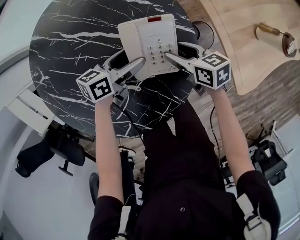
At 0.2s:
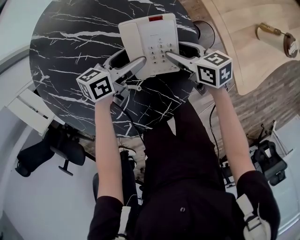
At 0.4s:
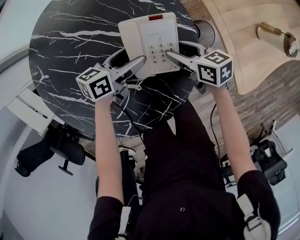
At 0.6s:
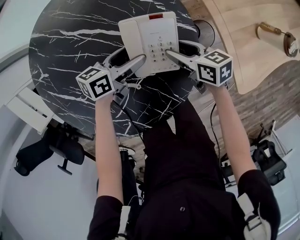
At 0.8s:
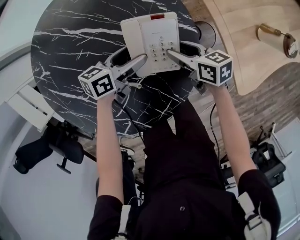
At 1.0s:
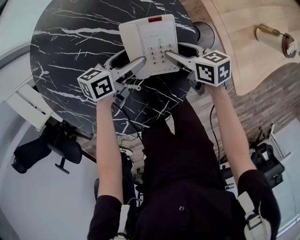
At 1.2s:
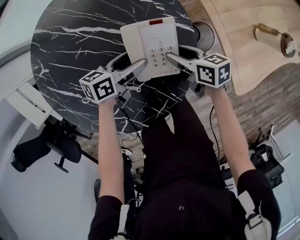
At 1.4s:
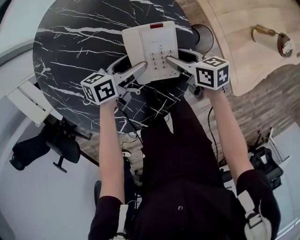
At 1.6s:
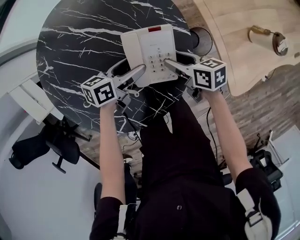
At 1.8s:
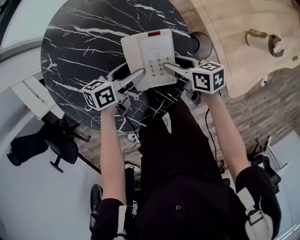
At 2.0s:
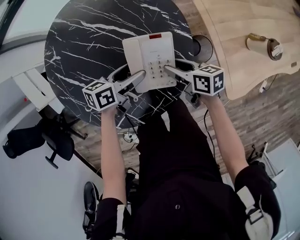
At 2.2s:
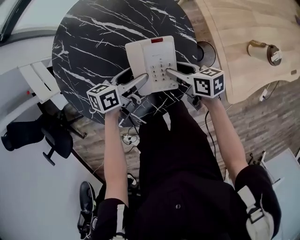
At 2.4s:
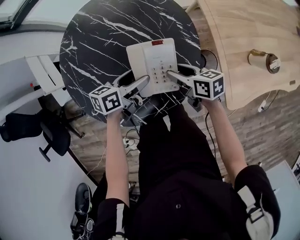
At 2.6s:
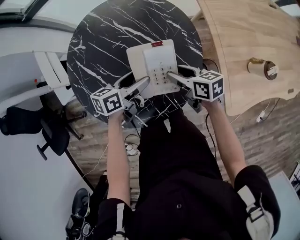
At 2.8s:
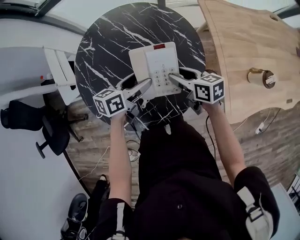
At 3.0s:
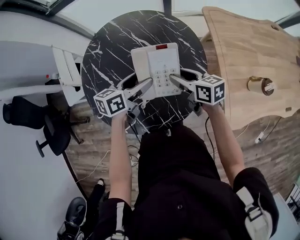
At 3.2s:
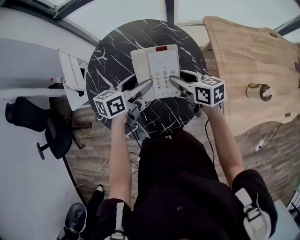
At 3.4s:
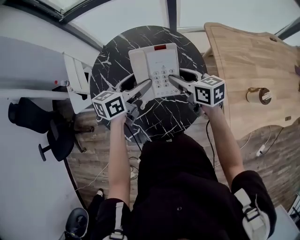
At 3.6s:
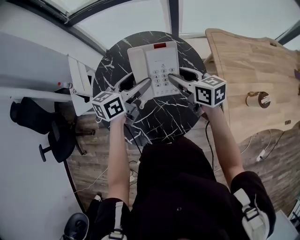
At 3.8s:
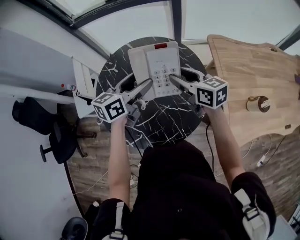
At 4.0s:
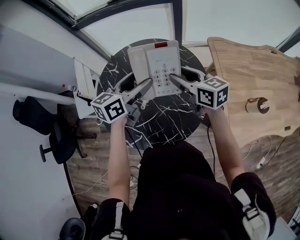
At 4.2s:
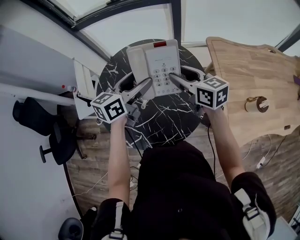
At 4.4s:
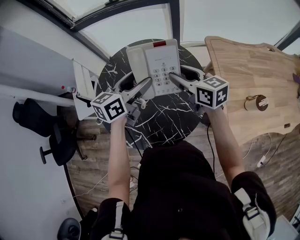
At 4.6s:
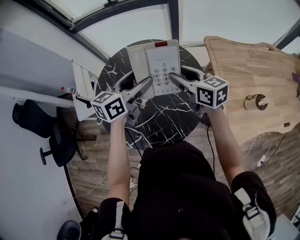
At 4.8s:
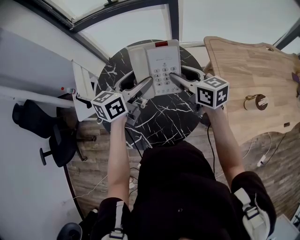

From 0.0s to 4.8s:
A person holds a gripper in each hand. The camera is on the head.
From 0.0s to 1.6s: The grippers stay close to where they were, moving slightly.
From 1.6s to 3.2s: Both grippers travel together upward and to the left, about 20 cm. The right gripper rotates some 30 degrees; the left gripper changes its angle by some 30 degrees.
From 3.2s to 4.8s: Both grippers travel together upward, some 10 cm.

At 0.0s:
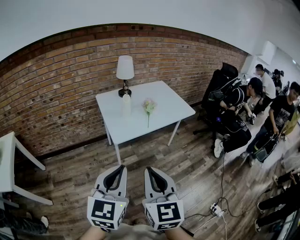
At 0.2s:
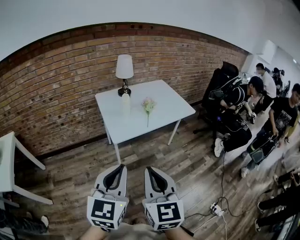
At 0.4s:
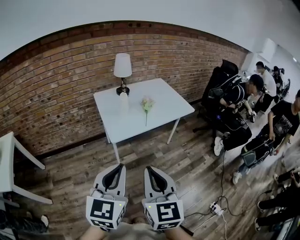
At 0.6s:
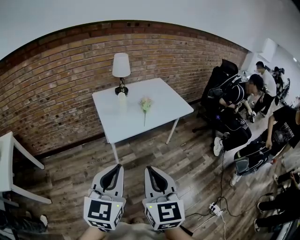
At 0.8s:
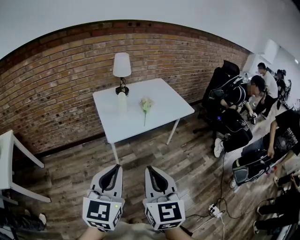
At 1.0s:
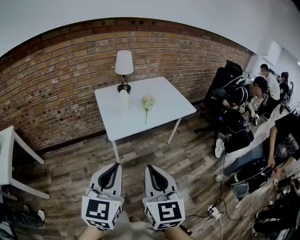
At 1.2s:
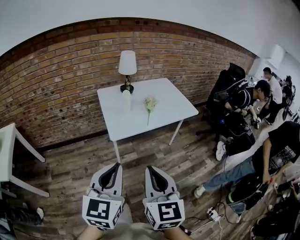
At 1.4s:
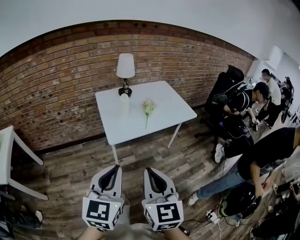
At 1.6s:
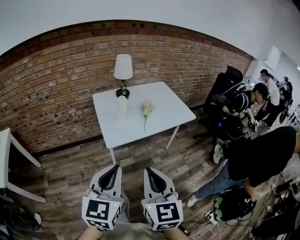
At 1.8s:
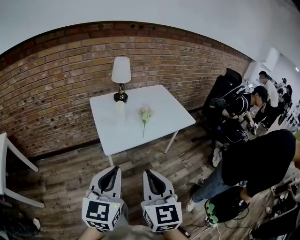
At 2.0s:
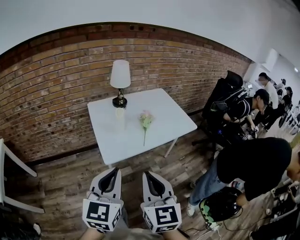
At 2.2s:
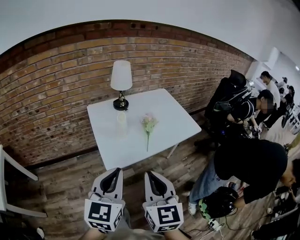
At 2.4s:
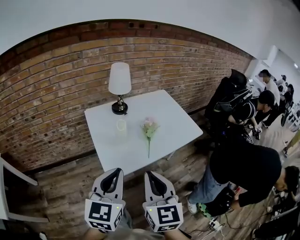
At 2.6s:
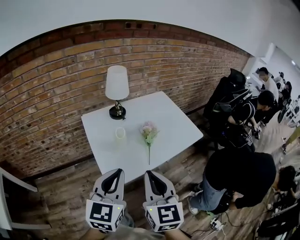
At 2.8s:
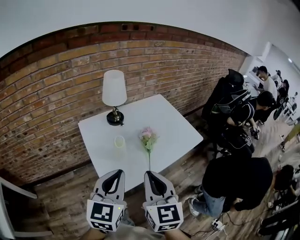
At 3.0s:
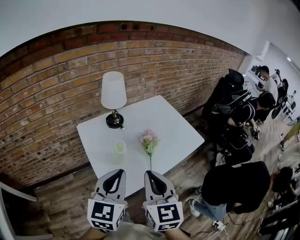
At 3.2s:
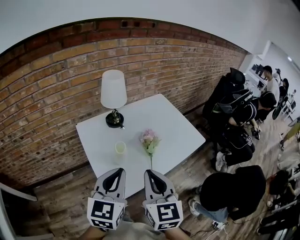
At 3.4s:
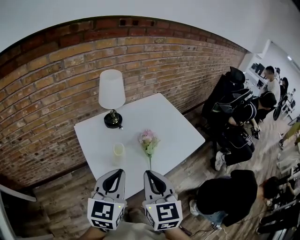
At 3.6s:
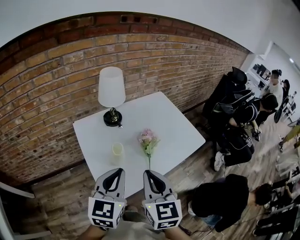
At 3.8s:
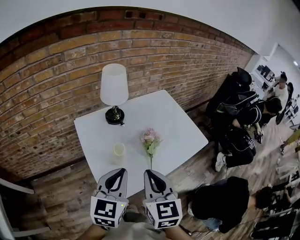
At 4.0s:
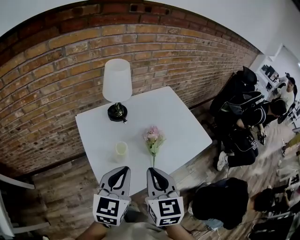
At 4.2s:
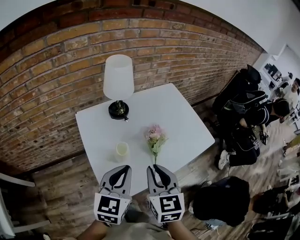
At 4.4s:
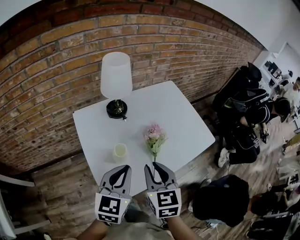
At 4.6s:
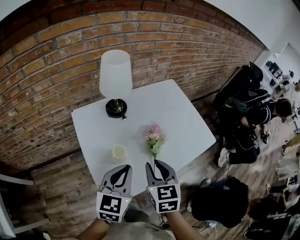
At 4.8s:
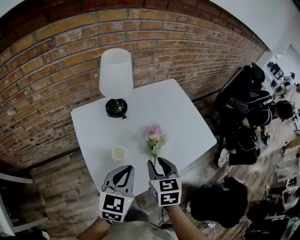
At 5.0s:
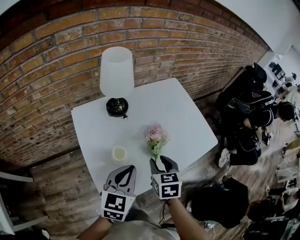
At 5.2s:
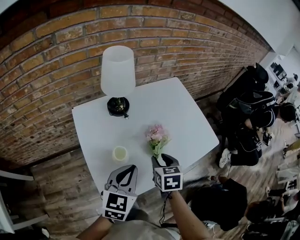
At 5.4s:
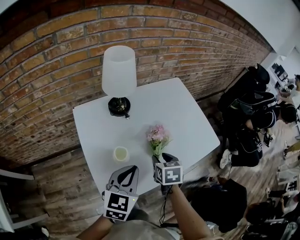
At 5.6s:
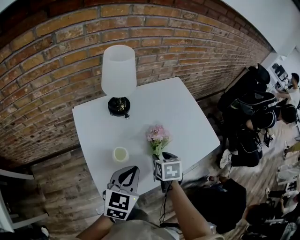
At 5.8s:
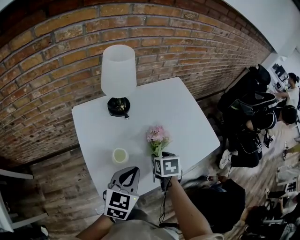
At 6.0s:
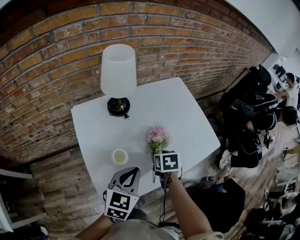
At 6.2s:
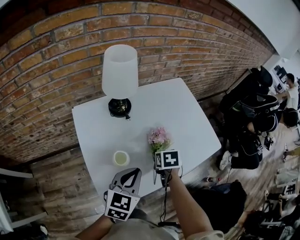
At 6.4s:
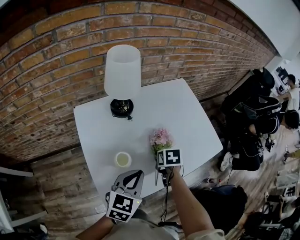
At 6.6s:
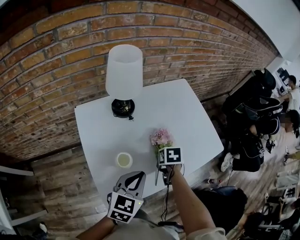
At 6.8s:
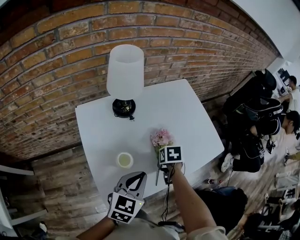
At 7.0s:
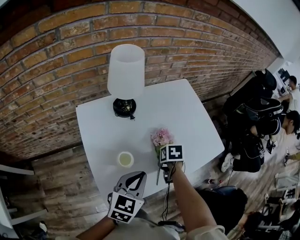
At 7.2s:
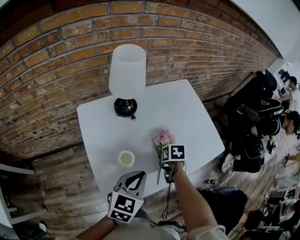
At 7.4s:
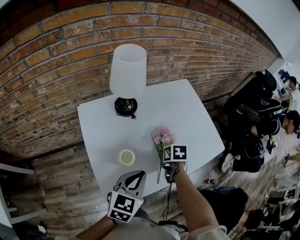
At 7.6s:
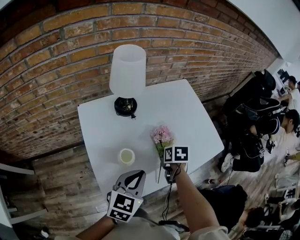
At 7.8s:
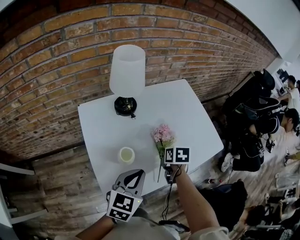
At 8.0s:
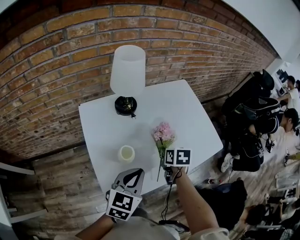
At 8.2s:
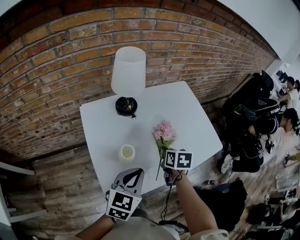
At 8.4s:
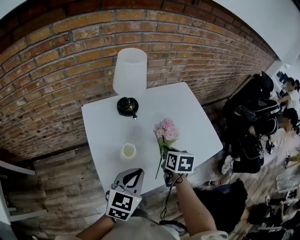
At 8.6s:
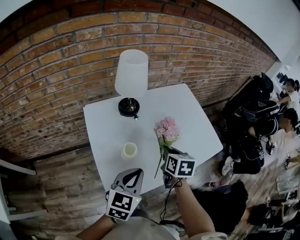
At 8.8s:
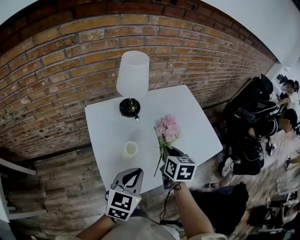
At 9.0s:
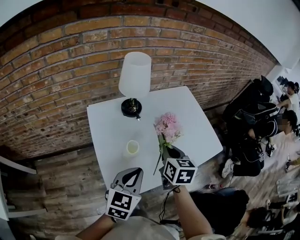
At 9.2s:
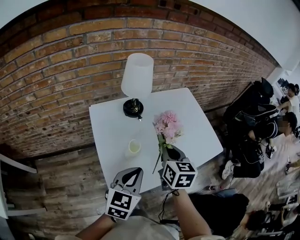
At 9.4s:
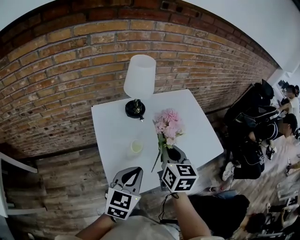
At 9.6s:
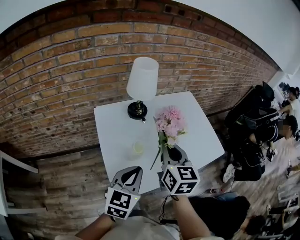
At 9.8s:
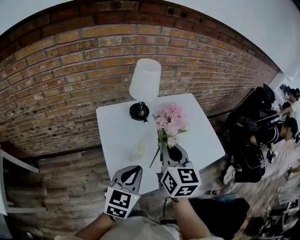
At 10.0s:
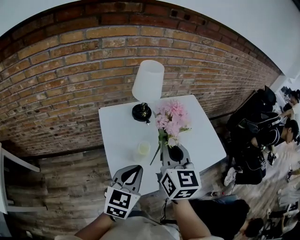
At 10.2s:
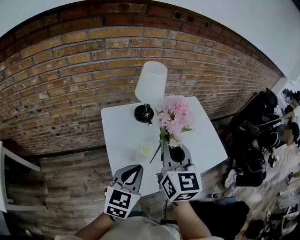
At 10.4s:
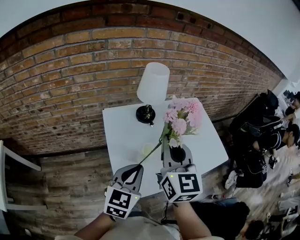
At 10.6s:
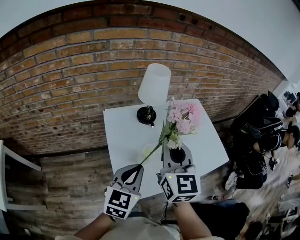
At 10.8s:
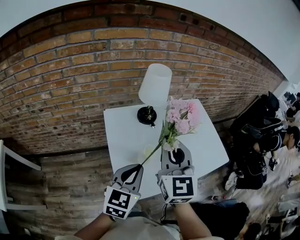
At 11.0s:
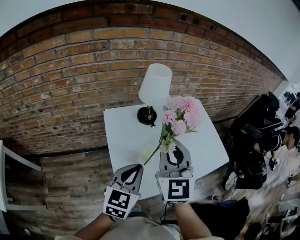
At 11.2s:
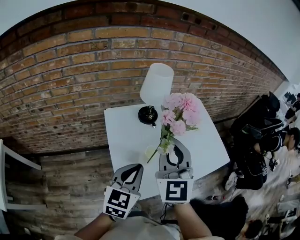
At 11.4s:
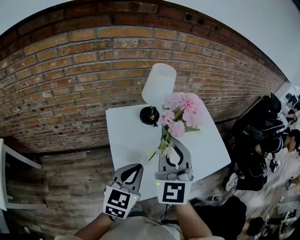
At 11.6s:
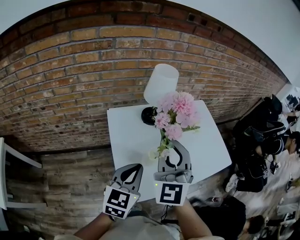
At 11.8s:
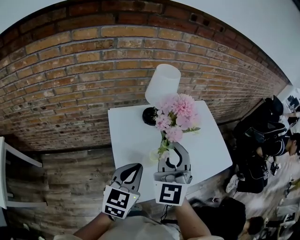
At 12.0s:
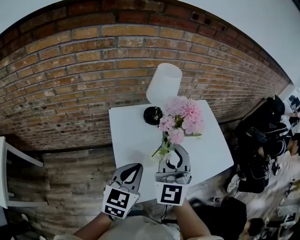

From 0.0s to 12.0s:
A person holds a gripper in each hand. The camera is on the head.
From 0.0s to 1.6s: Both grippers travel together forward, some 5 cm.
From 1.6s to 3.0s: Both grippers move forward, about 30 cm.
From 3.0s to 4.4s: The two grippers go some 15 cm forward and downward. The right gripper opens up.
From 4.4s to 6.0s: The left gripper heads downward, covering roughly 5 cm. Meanwhile the right gripper moves downward and forward, approximately 20 cm, tips its fingers downward by roughly 30 degrees, and opens up.
From 6.0s to 7.6s: The right gripper closes up.
From 7.6s to 9.0s: The right gripper heads upward, covering some 15 cm, and tips its fingers upward by approximately 30 degrees, while the left gripper ends up some 5 cm from where it was.
From 9.0s to 10.4s: The right gripper moves upward and to the left, about 20 cm, and changes its angle by about 30 degrees; the left gripper is displaced to the left by approximately 5 cm.
From 10.4s to 12.0s: The right gripper turns by approximately 30 degrees.

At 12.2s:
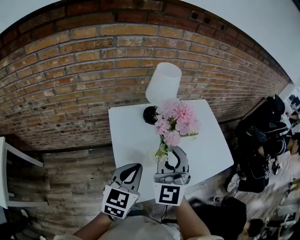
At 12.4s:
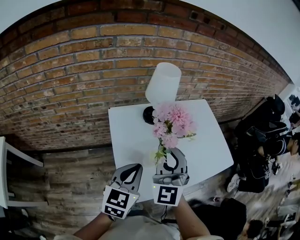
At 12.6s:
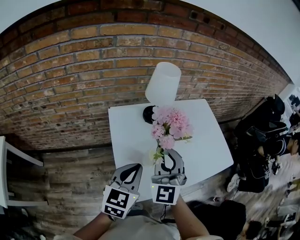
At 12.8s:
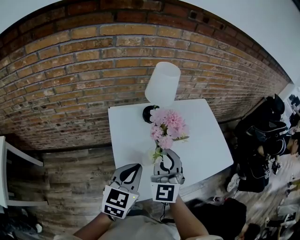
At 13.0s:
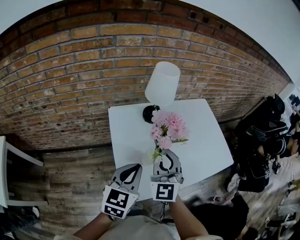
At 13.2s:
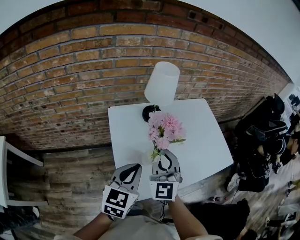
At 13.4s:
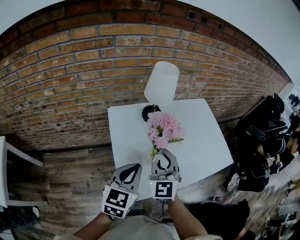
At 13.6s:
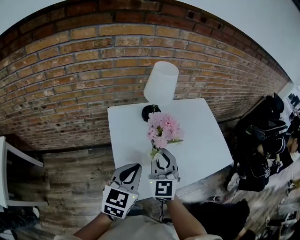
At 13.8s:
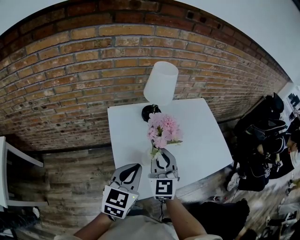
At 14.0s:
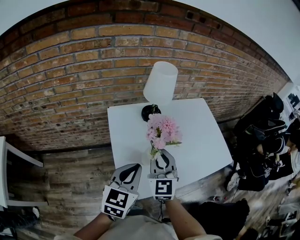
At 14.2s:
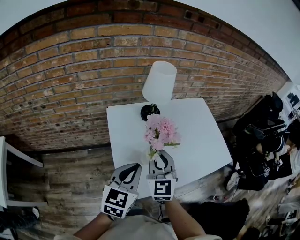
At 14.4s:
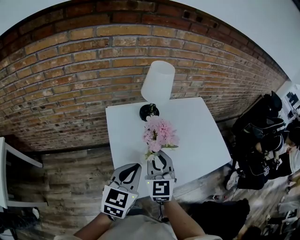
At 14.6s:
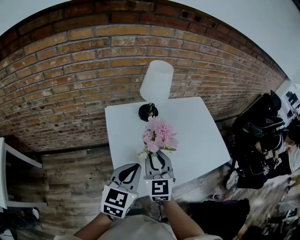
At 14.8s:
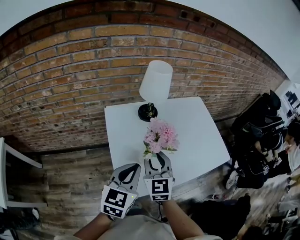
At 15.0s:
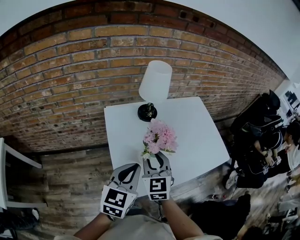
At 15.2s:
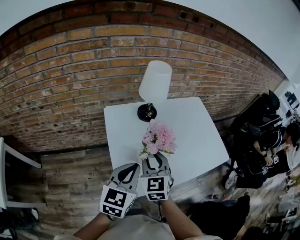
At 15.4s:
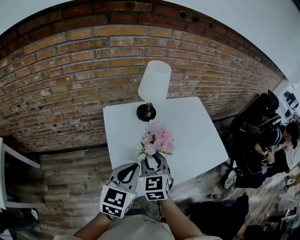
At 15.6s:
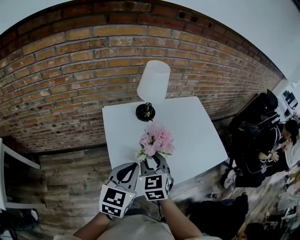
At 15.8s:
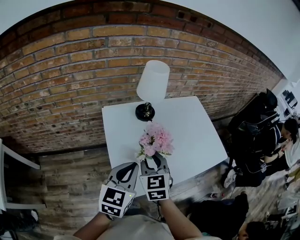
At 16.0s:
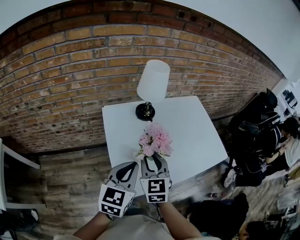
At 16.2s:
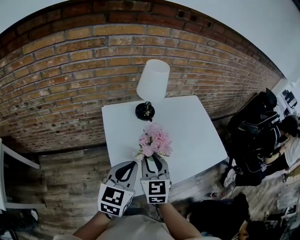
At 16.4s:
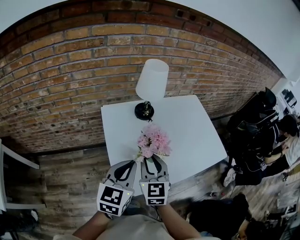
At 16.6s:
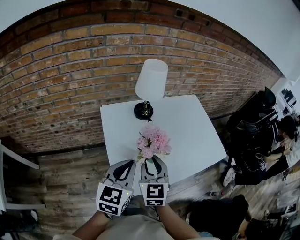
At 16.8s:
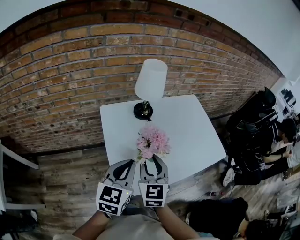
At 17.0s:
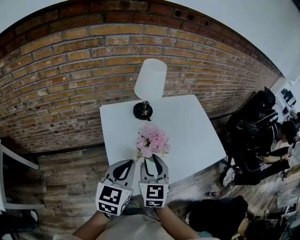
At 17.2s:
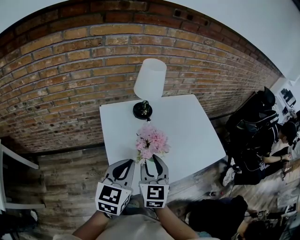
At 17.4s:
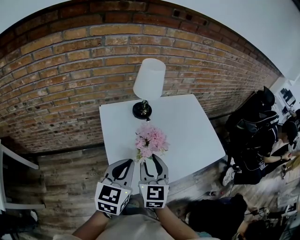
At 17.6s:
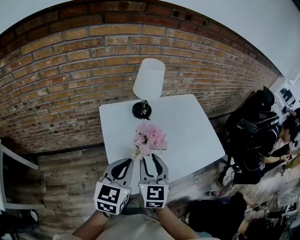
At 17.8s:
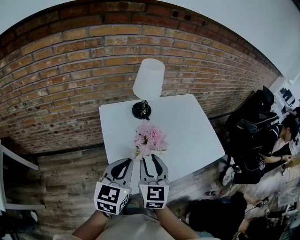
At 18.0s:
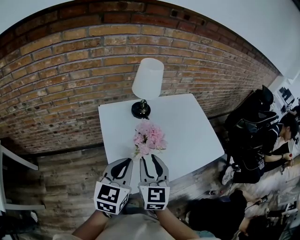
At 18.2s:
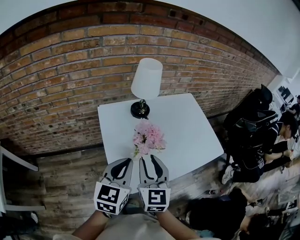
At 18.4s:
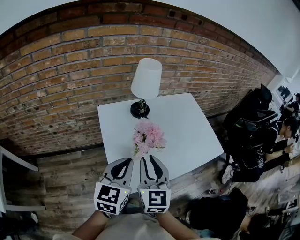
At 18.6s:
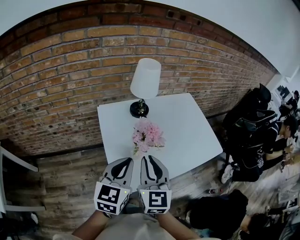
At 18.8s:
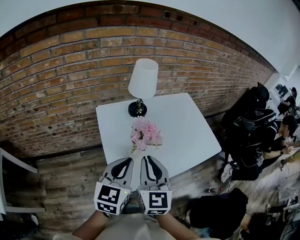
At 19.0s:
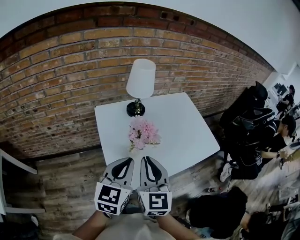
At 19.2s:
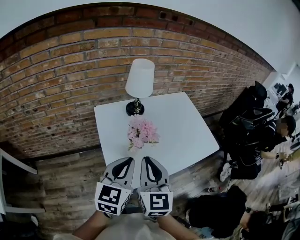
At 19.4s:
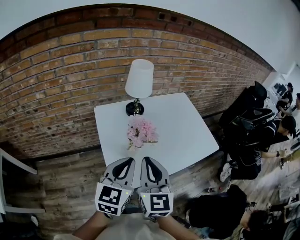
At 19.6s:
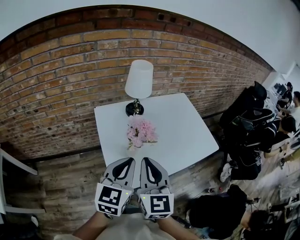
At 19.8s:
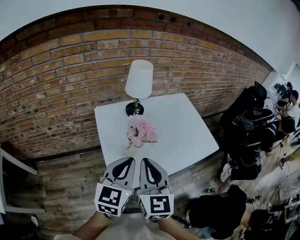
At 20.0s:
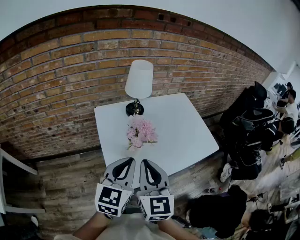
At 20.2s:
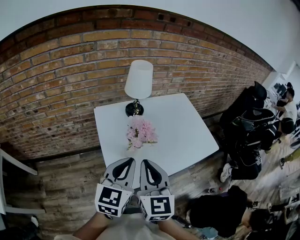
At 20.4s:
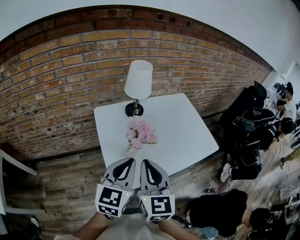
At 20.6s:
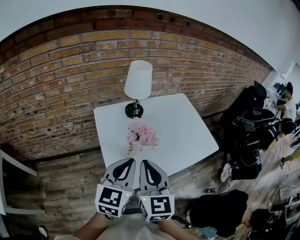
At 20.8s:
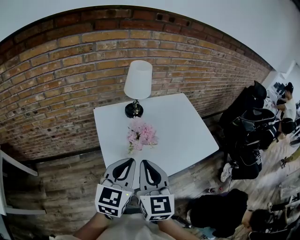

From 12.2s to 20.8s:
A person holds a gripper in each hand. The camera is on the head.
From 12.2s to 13.6s: The right gripper is displaced downward by roughly 10 cm.
From 13.6s to 15.0s: The grippers stay close to where they were, moving slightly.
From 15.0s to 18.0s: The grippers move only a little.
From 18.0s to 19.4s: The left gripper moves some 5 cm. Meanwhile the right gripper goes about 10 cm upward and backward, and closes its fingers.
From 19.4s to 20.8s: The two grippers keep their place.
